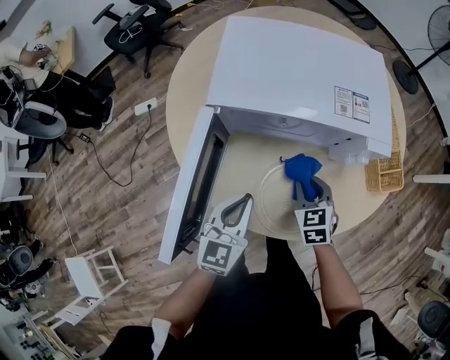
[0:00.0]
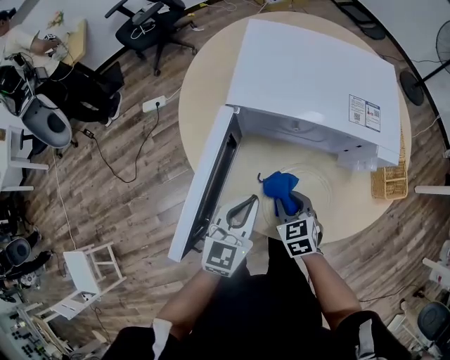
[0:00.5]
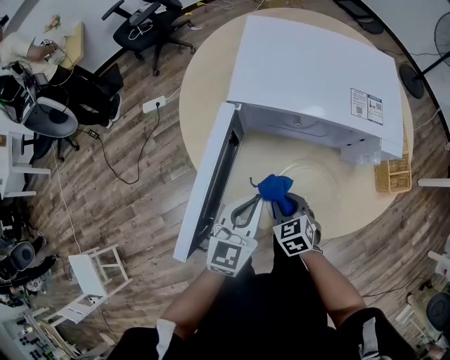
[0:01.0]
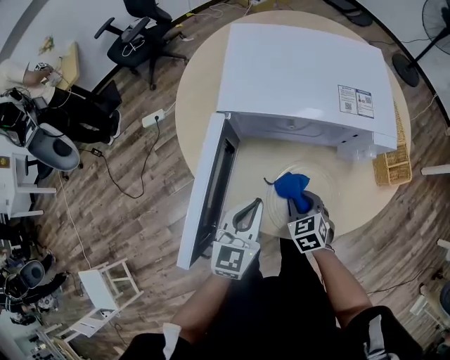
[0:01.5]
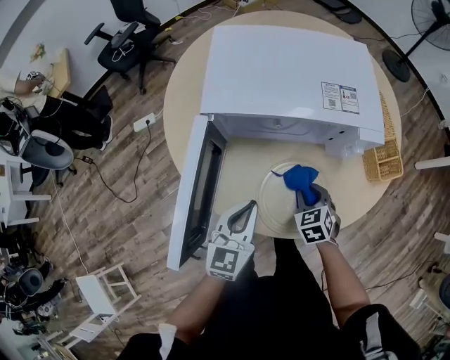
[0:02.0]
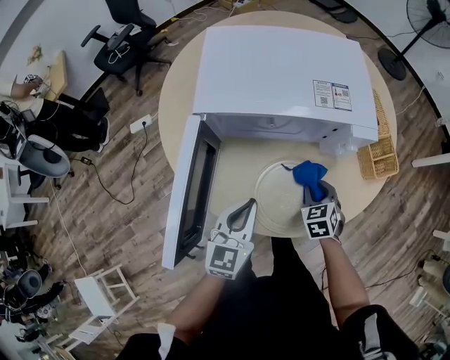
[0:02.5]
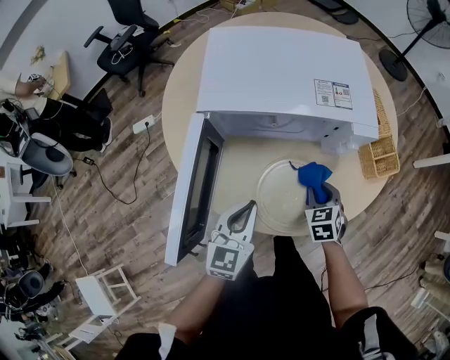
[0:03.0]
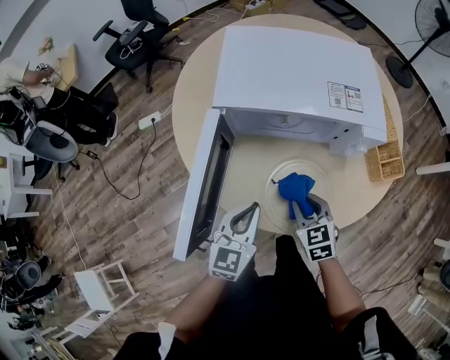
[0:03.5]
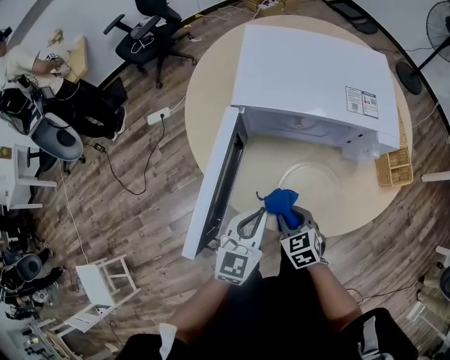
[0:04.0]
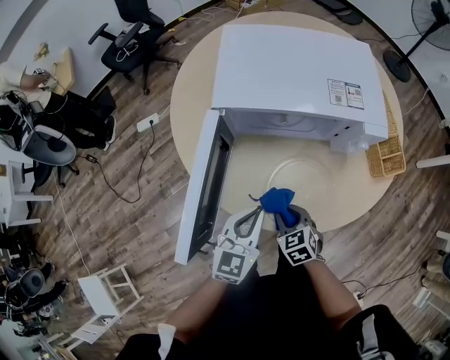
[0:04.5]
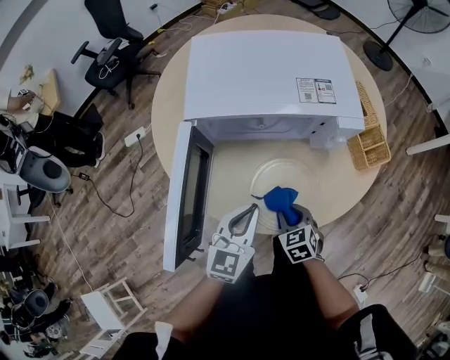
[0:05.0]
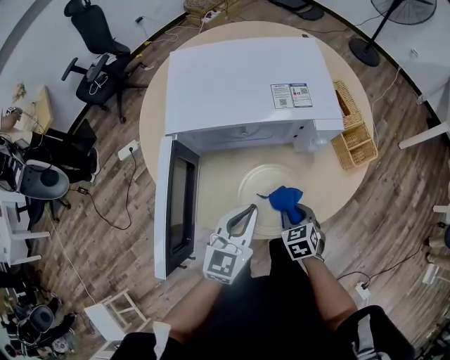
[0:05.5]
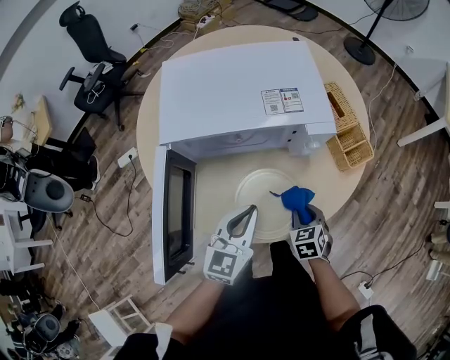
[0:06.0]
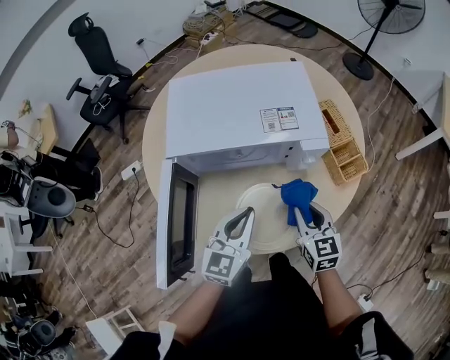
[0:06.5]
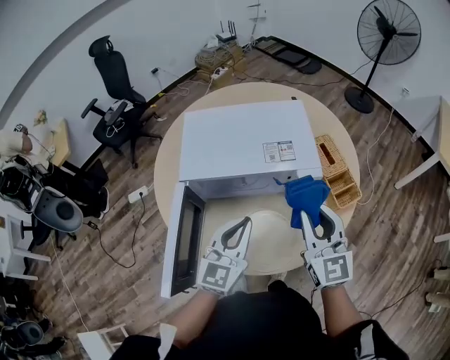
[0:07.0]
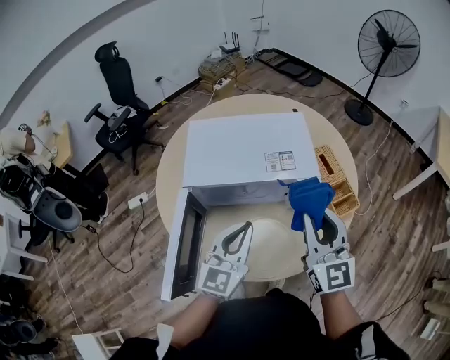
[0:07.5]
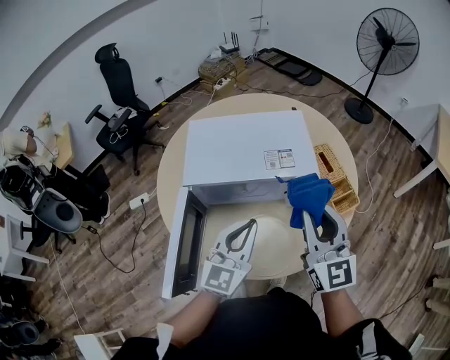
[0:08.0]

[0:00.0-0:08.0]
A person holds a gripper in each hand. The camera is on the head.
0:00.0 to 0:02.0: The right gripper travels to the left and back again, about 10 cm each way.
0:02.0 to 0:04.0: The right gripper travels to the left and backward by approximately 15 cm.
0:04.0 to 0:06.0: The right gripper changes place by about 20 cm, and rotates some 30 degrees; the left gripper shifts by about 10 cm.
0:06.0 to 0:08.0: The left gripper shifts some 15 cm upward. The right gripper heads upward, covering roughly 35 cm, and tilts its fingers about 60 degrees upward.

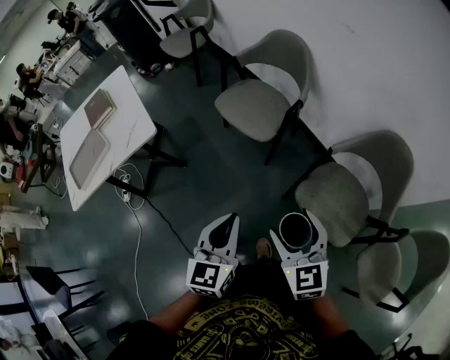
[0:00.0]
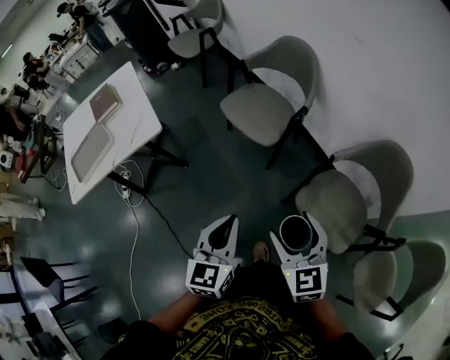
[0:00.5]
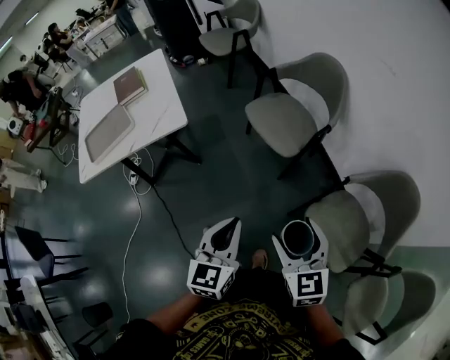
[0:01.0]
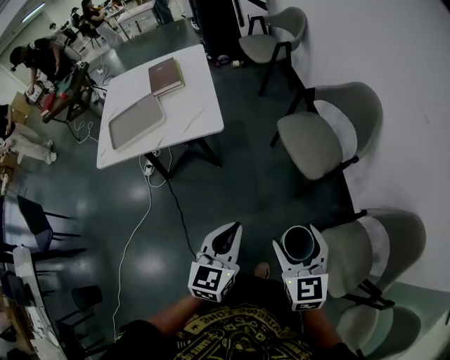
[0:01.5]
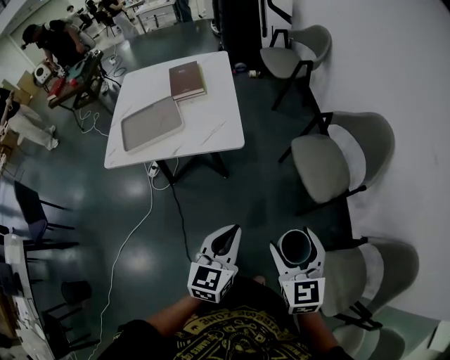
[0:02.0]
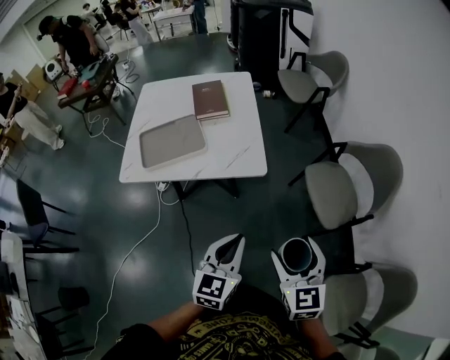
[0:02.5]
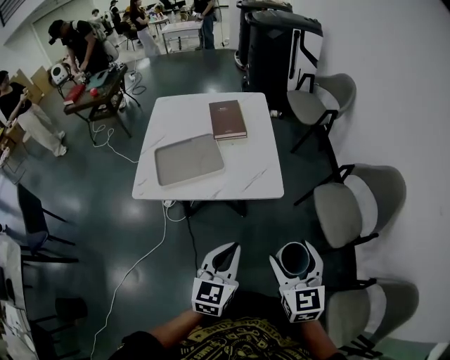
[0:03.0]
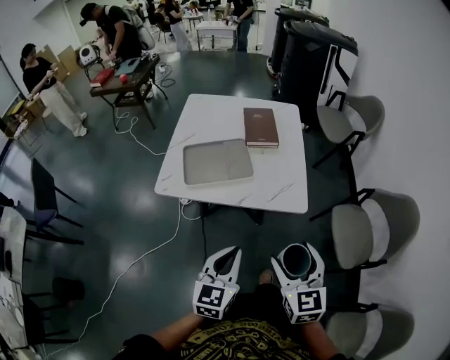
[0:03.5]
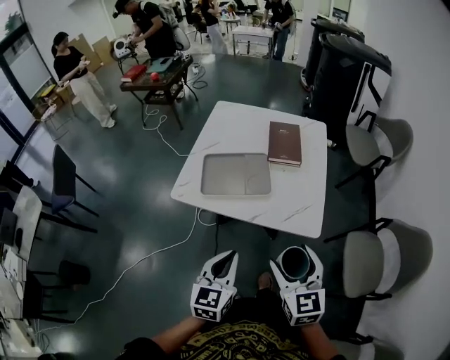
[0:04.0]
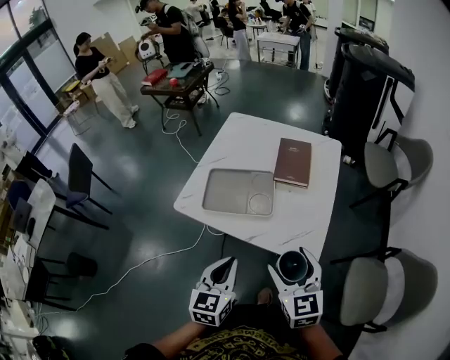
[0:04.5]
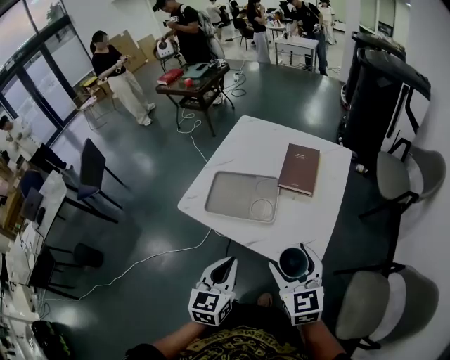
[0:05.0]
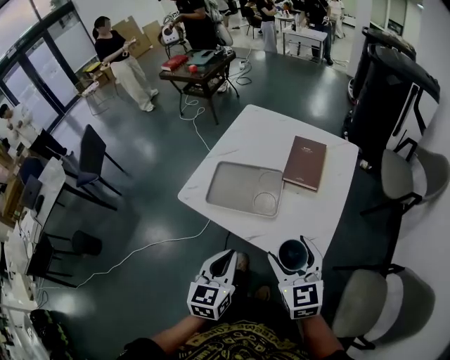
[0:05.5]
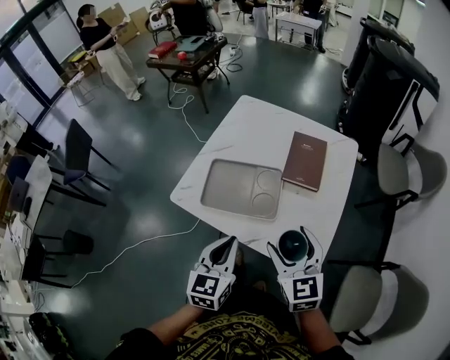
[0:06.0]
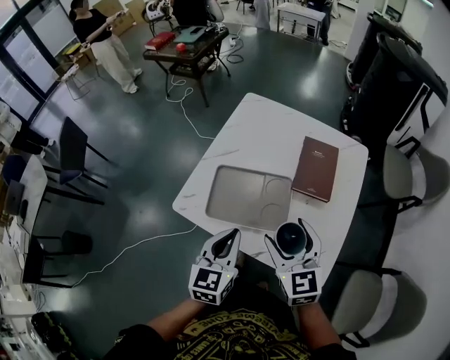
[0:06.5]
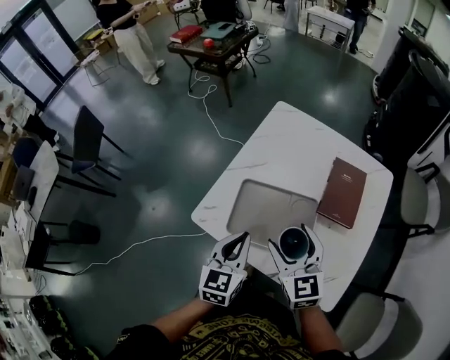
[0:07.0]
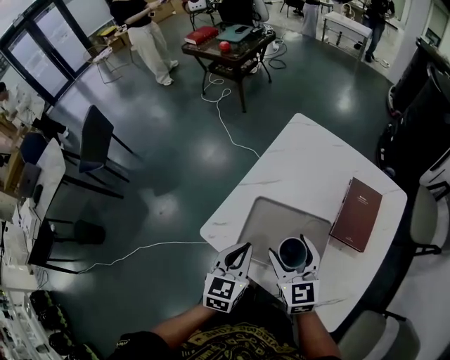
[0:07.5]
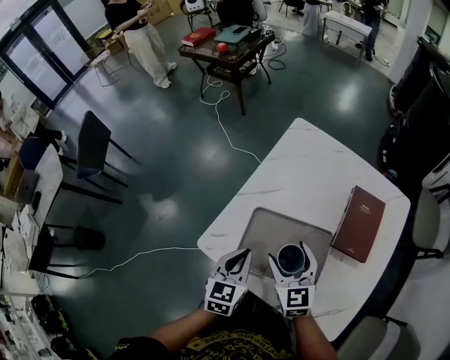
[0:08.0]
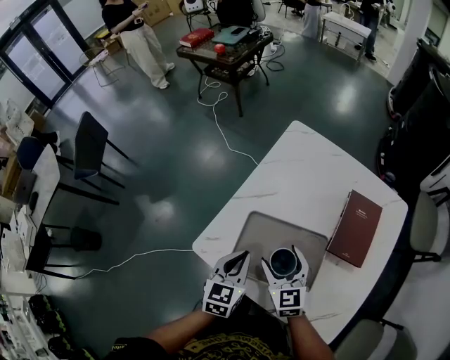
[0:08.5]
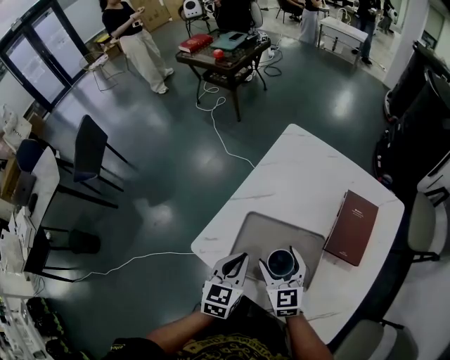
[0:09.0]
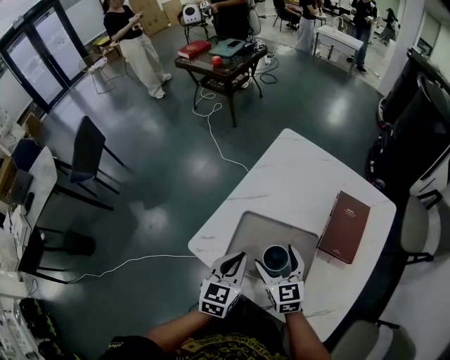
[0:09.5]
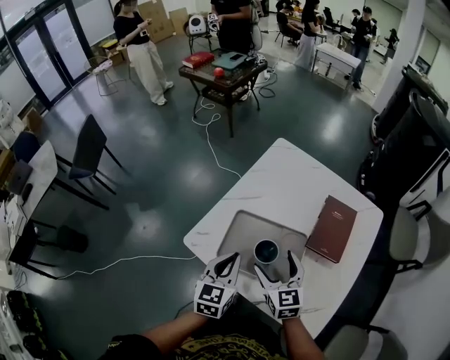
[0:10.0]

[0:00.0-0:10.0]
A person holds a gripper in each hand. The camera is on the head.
0:00.0 to 0:02.0: The right gripper moves to the left and forward, about 25 cm, and turns by about 20 degrees. The left gripper is displaced to the left by approximately 20 cm, and turns by some 20 degrees.
0:02.0 to 0:04.0: Both grippers move to the left and forward, some 30 cm. The left gripper rotates approximately 30 degrees. Meanwhile the right gripper rotates some 20 degrees.
0:04.0 to 0:06.0: The two grippers go approximately 15 cm forward.
0:06.0 to 0:08.0: The grippers both shift forward, to the left and downward by roughly 25 cm.
0:08.0 to 0:10.0: The right gripper moves roughly 5 cm. Meanwhile the left gripper moves some 5 cm.

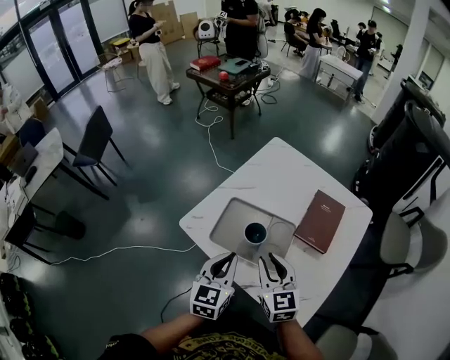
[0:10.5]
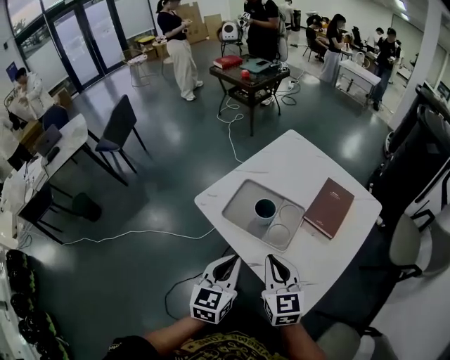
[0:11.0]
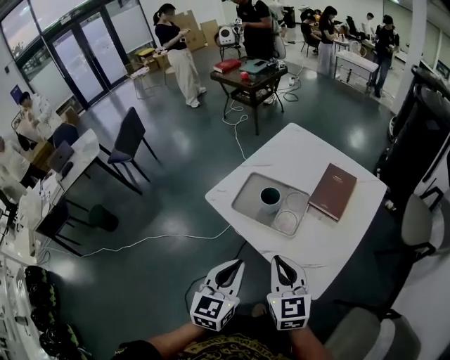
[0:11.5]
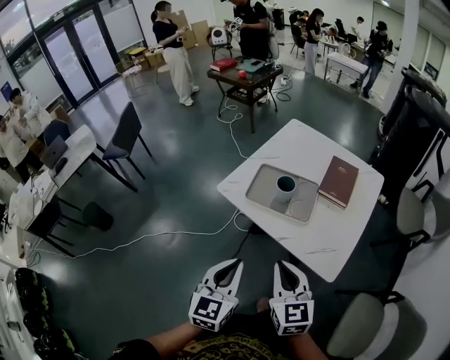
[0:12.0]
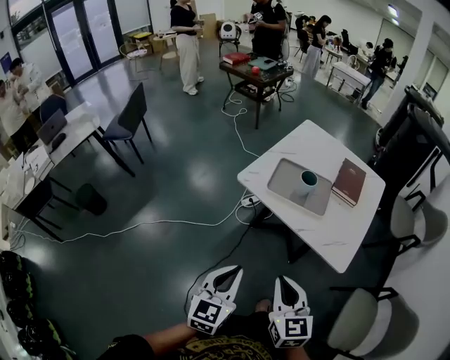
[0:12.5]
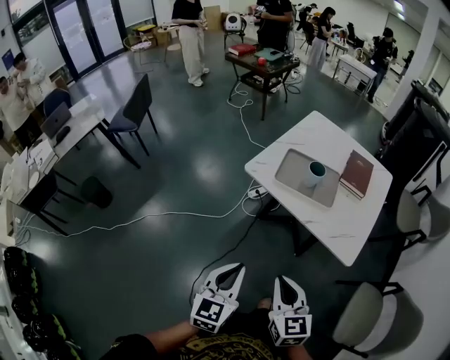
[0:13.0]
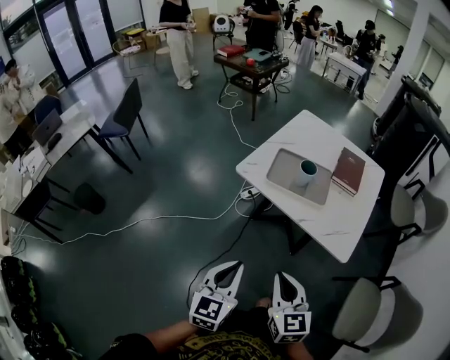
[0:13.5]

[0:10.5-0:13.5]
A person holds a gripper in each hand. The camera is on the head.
0:10.5 to 0:12.0: The grippers both shift backward by roughly 25 cm.
0:12.0 to 0:13.5: The right gripper goes about 15 cm backward and to the left, while the left gripper travels to the left and backward by roughly 15 cm.

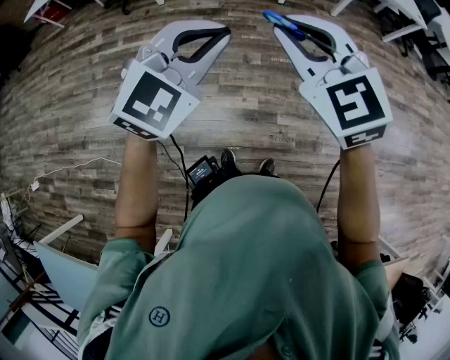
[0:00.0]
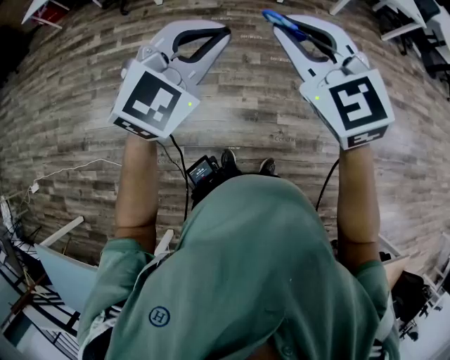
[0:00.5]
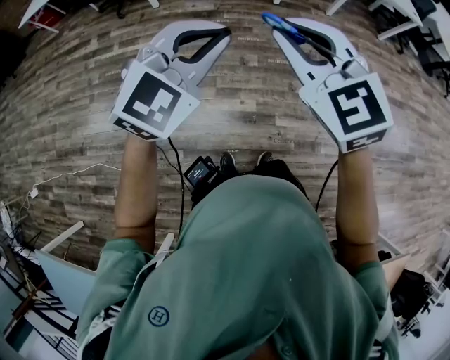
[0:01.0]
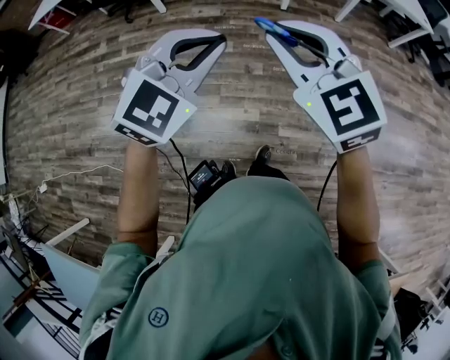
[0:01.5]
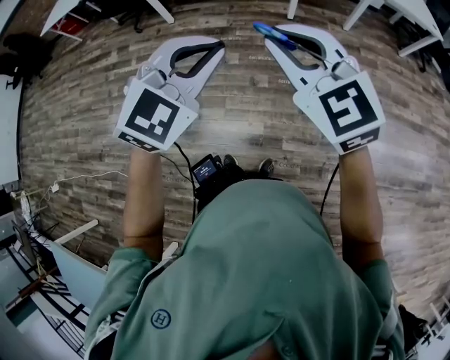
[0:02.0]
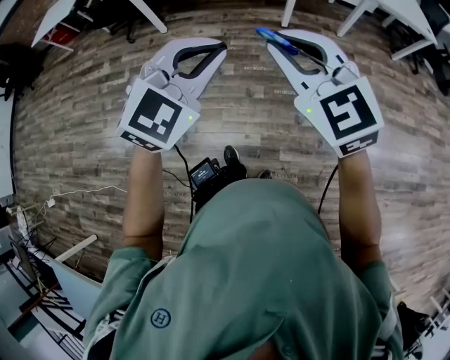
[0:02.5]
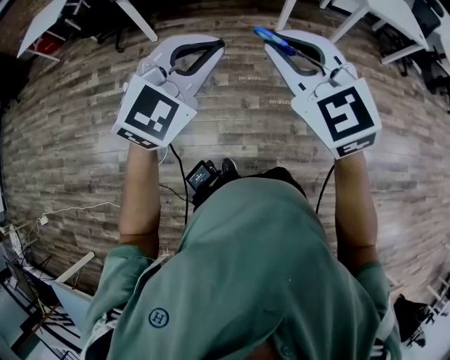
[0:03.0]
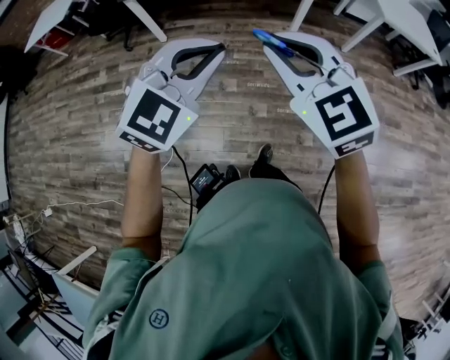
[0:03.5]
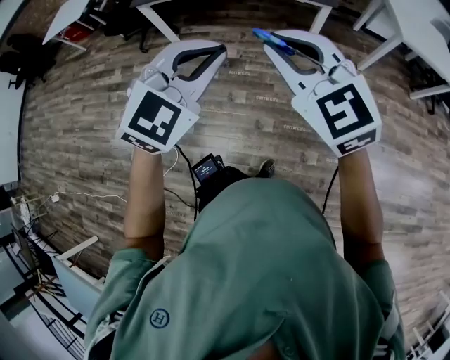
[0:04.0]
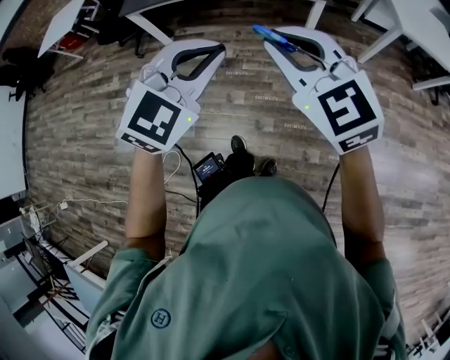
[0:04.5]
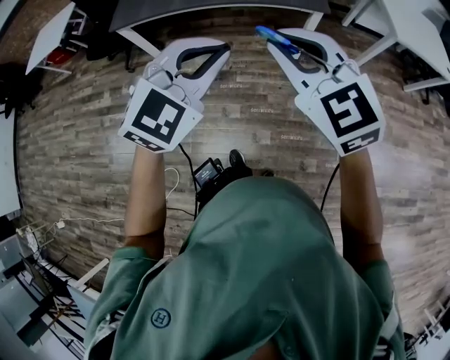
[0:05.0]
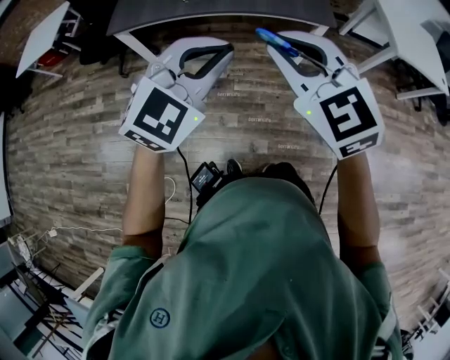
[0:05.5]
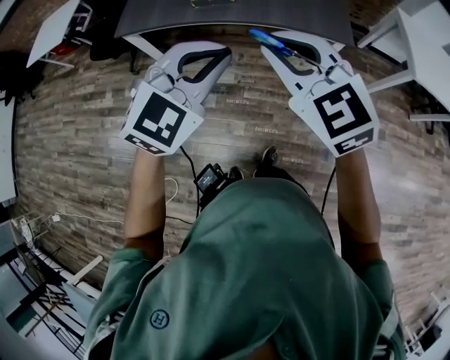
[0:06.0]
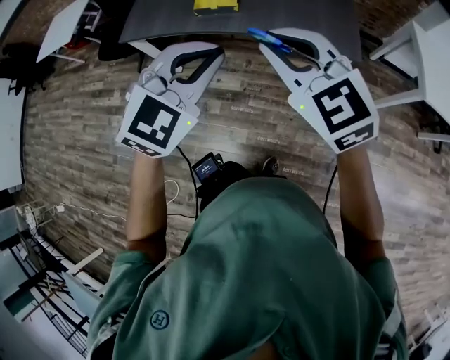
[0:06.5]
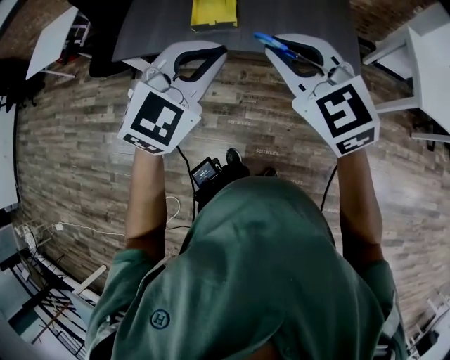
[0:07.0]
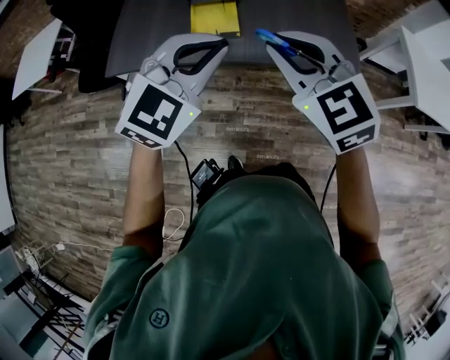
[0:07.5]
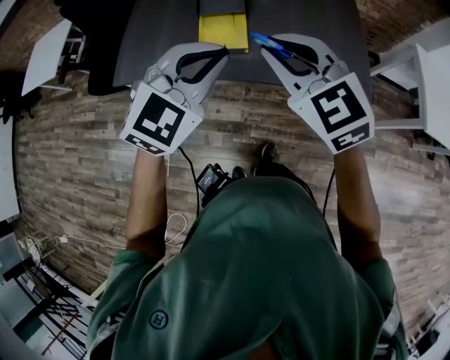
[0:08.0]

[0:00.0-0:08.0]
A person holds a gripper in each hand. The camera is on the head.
0:00.0 to 0:02.0: Both grippers travel together forward and to the right, some 20 cm.
0:02.0 to 0:04.0: The two grippers go approximately 30 cm forward.
0:04.0 to 0:06.0: Both grippers travel together forward, approximately 30 cm.
0:06.0 to 0:08.0: The two grippers go some 30 cm forward.
